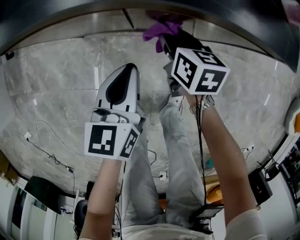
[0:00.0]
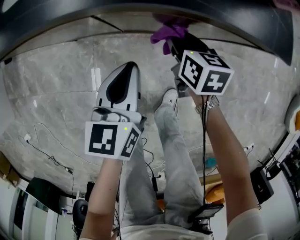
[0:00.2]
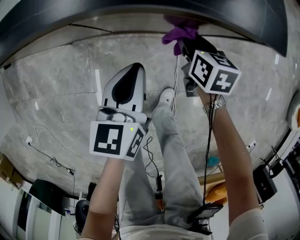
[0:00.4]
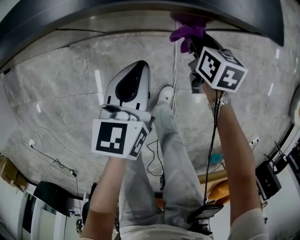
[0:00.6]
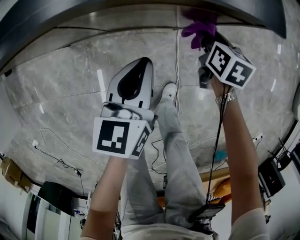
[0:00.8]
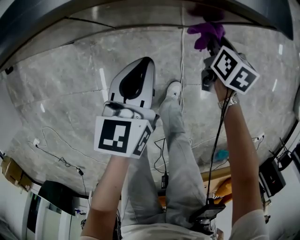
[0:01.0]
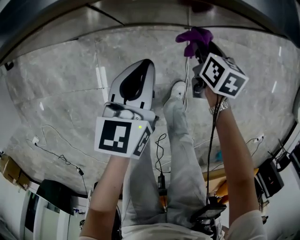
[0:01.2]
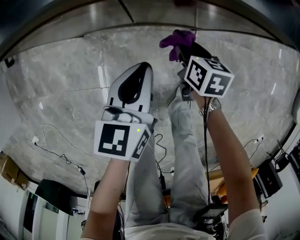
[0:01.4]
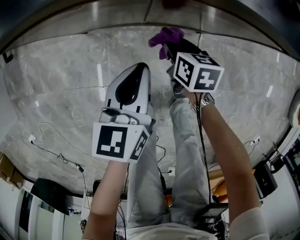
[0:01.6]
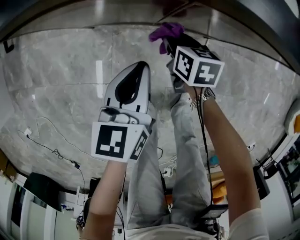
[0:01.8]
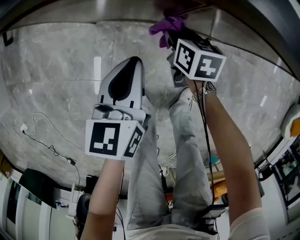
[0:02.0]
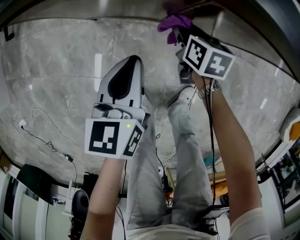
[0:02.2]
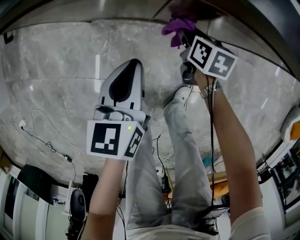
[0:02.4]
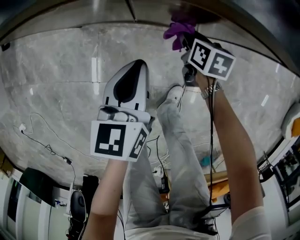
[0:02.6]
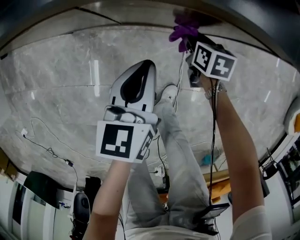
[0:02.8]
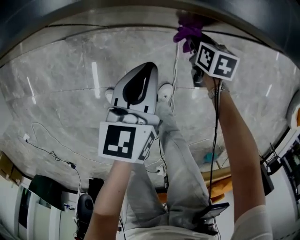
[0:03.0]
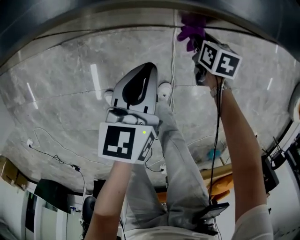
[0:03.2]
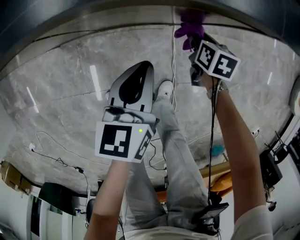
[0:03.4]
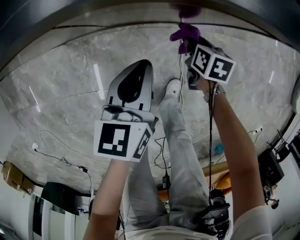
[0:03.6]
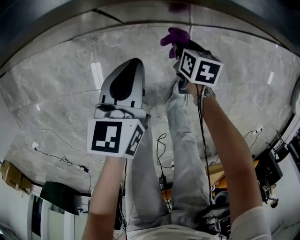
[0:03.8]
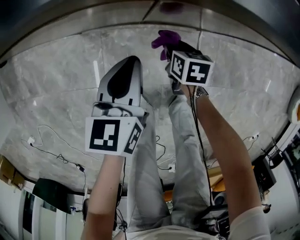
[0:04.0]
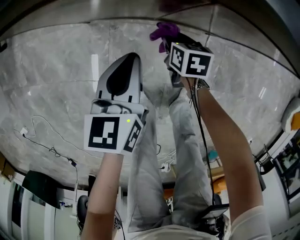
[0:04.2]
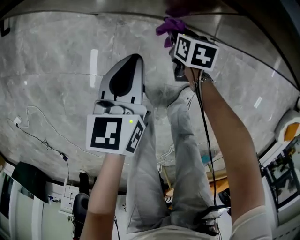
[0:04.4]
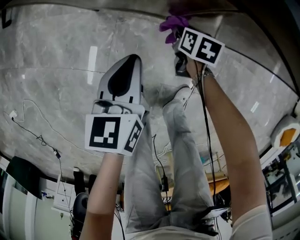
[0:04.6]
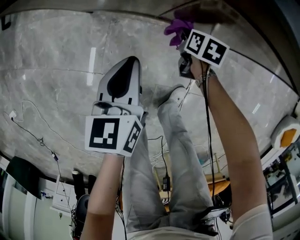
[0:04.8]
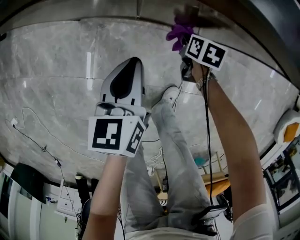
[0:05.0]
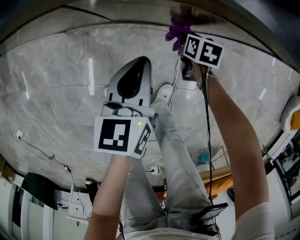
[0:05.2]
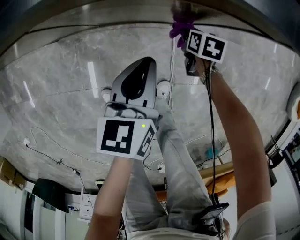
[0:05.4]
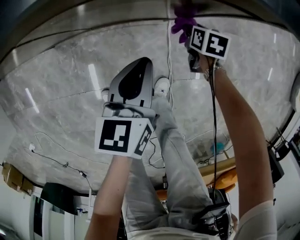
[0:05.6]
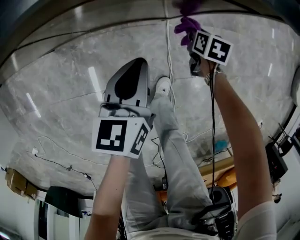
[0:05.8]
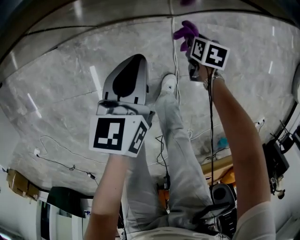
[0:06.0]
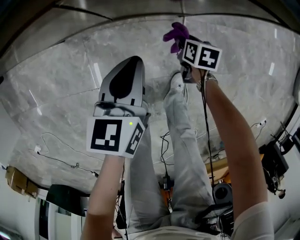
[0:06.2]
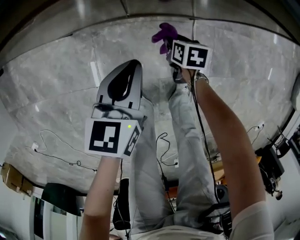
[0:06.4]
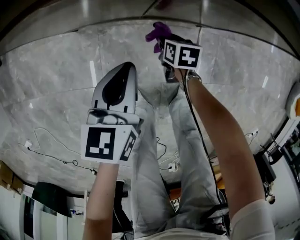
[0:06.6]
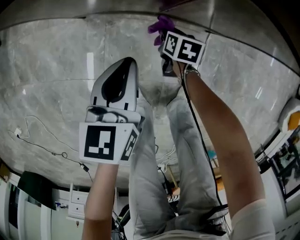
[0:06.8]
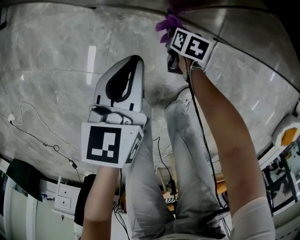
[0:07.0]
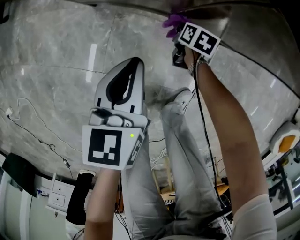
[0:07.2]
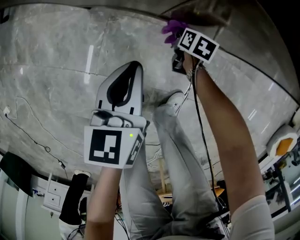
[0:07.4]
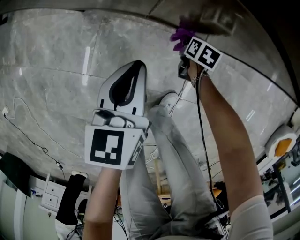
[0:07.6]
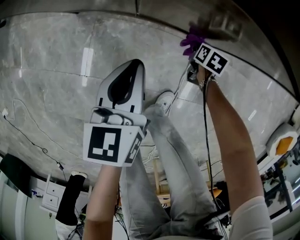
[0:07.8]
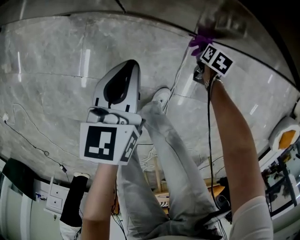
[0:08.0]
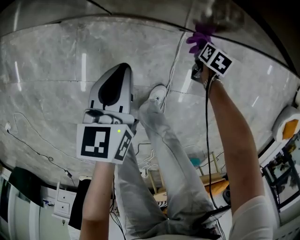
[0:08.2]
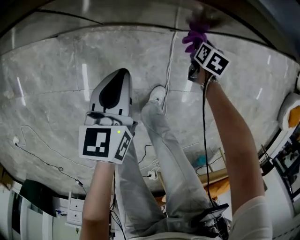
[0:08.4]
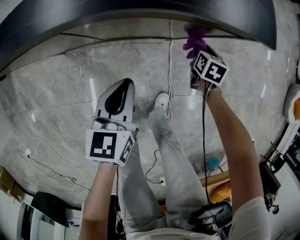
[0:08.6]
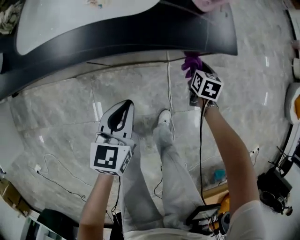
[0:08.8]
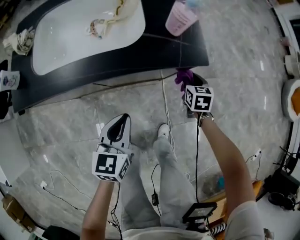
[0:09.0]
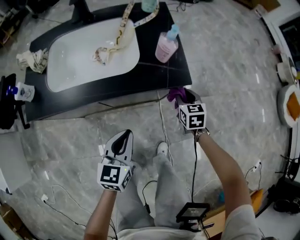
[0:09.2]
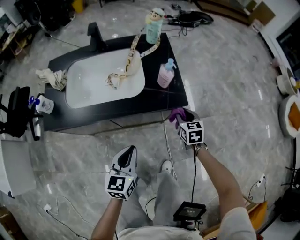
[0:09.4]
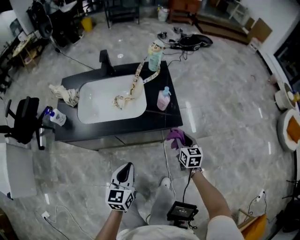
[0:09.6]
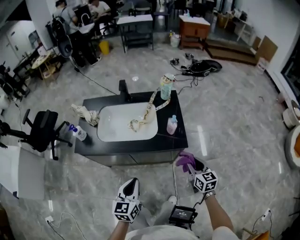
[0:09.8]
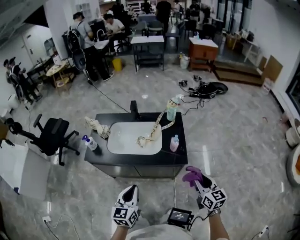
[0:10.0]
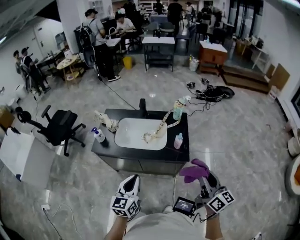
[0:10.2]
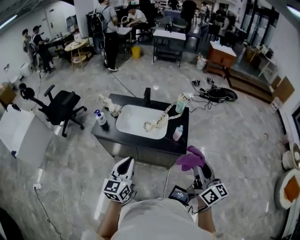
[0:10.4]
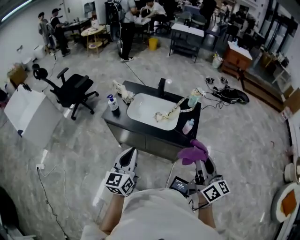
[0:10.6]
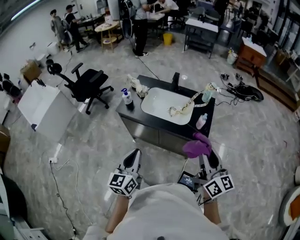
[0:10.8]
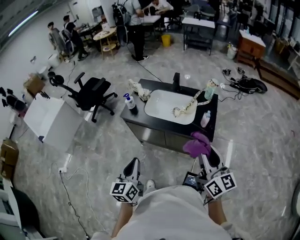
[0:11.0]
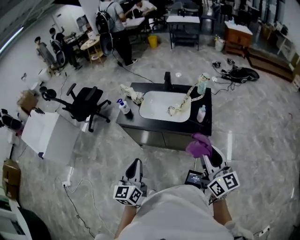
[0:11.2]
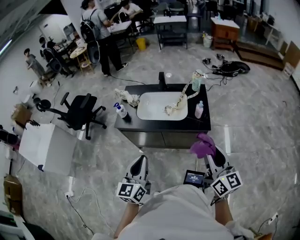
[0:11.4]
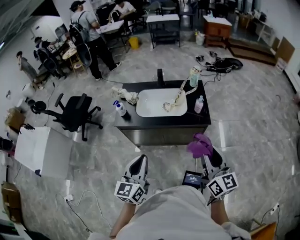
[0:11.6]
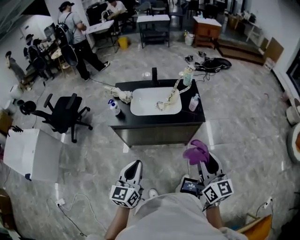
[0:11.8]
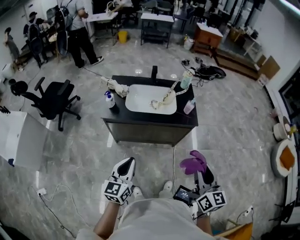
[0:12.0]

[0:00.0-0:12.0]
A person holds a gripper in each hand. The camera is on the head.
0:00.0 to 0:01.6: The left gripper reaches roughly 15 cm to the right, then returns. The right gripper travels downward by roughly 5 cm, and reaches some 25 cm to the right, then returns.
0:01.6 to 0:03.0: The two grippers go some 20 cm to the right.
0:03.0 to 0:04.4: Both grippers travel together to the left, some 30 cm.
0:04.4 to 0:06.0: The left gripper ends up some 25 cm from where it was; the right gripper ends up roughly 35 cm from where it was, and turns by some 20 degrees.
0:06.0 to 0:07.6: The left gripper is displaced to the left by roughly 15 cm, and swivels about 20 degrees; the right gripper travels to the left, forward and downward by approximately 20 cm.
0:07.6 to 0:09.0: The left gripper travels upward by approximately 20 cm, and turns by about 30 degrees, while the right gripper shifts roughly 30 cm upward, and turns by approximately 20 degrees.
0:09.0 to 0:10.4: Both grippers move upward, some 50 cm. The right gripper points its fingers roughly 50 degrees further upward. Meanwhile the left gripper changes its angle by about 30 degrees.
0:10.4 to 0:12.0: The right gripper changes place by approximately 25 cm, and changes its angle by some 20 degrees; the left gripper changes place by roughly 20 cm.

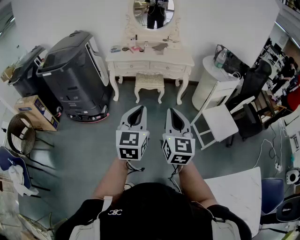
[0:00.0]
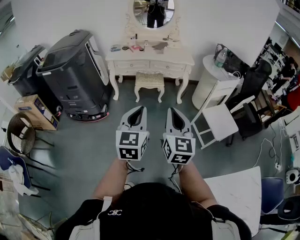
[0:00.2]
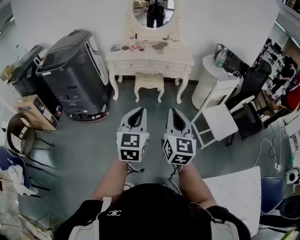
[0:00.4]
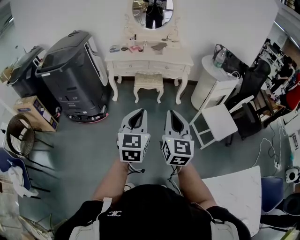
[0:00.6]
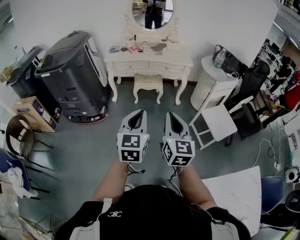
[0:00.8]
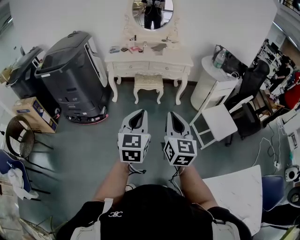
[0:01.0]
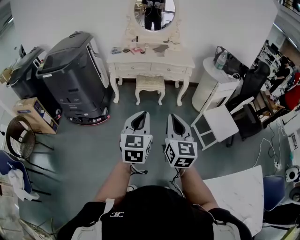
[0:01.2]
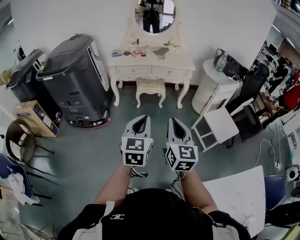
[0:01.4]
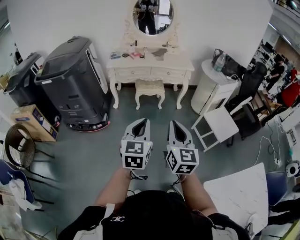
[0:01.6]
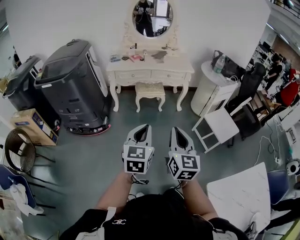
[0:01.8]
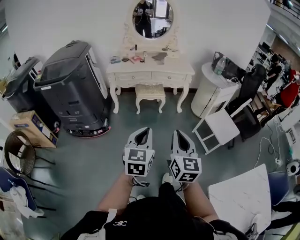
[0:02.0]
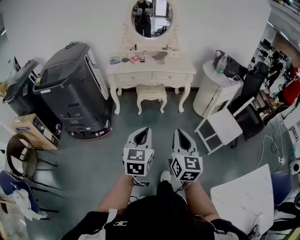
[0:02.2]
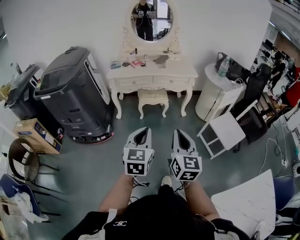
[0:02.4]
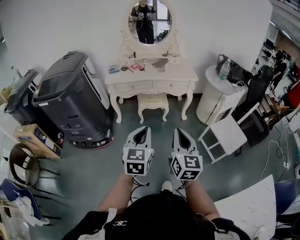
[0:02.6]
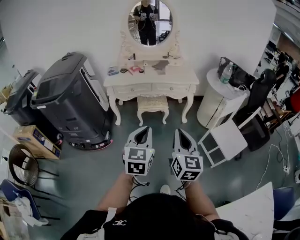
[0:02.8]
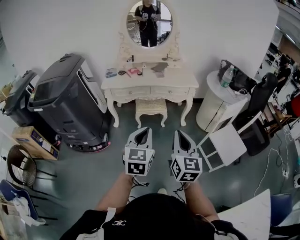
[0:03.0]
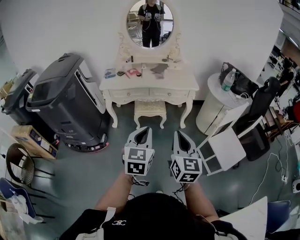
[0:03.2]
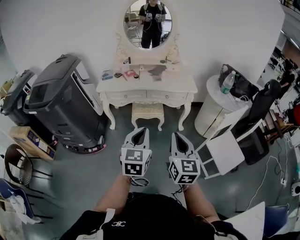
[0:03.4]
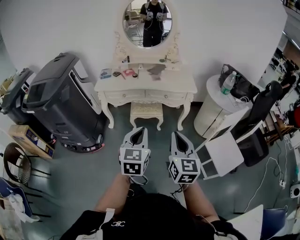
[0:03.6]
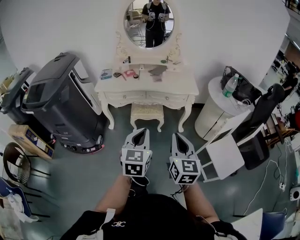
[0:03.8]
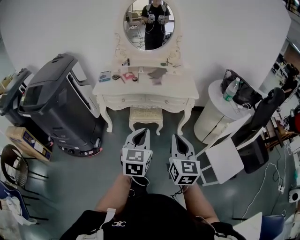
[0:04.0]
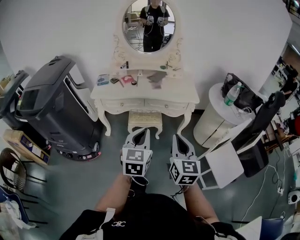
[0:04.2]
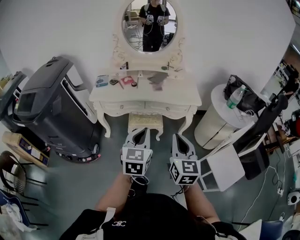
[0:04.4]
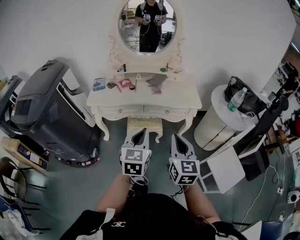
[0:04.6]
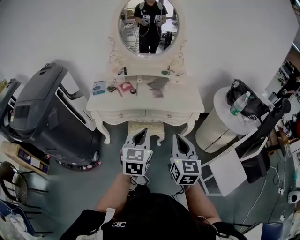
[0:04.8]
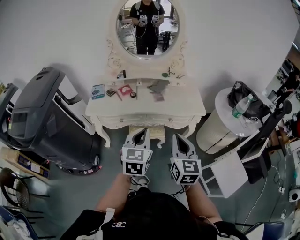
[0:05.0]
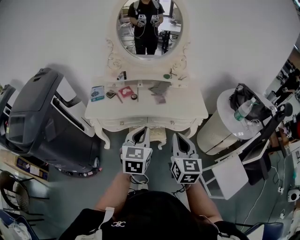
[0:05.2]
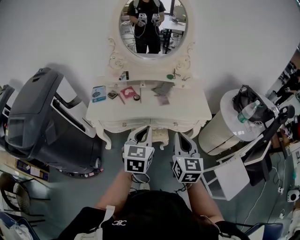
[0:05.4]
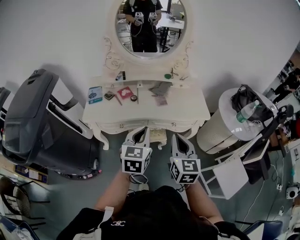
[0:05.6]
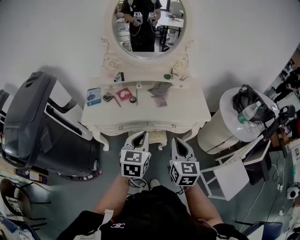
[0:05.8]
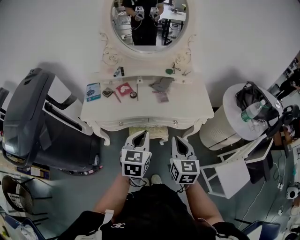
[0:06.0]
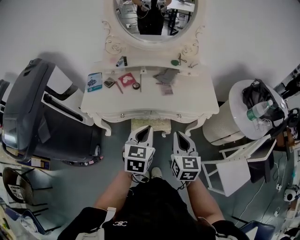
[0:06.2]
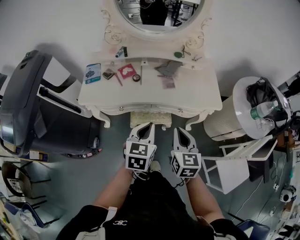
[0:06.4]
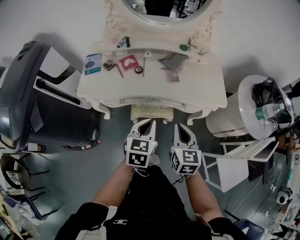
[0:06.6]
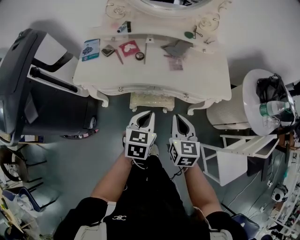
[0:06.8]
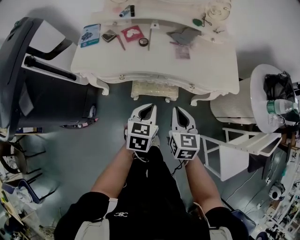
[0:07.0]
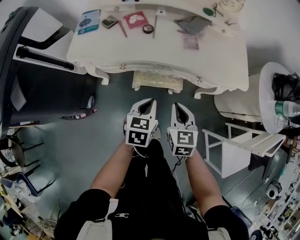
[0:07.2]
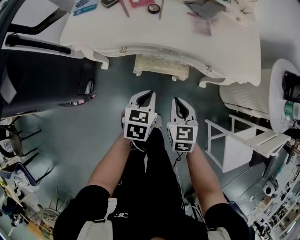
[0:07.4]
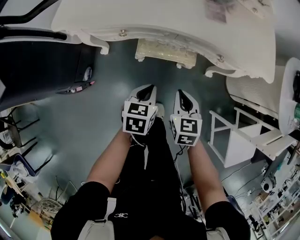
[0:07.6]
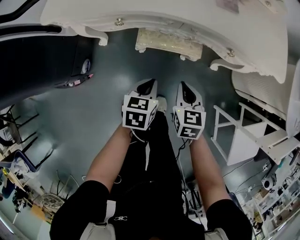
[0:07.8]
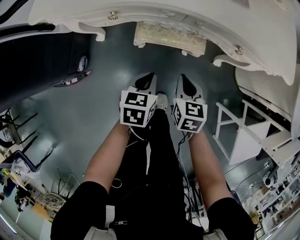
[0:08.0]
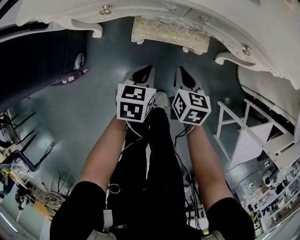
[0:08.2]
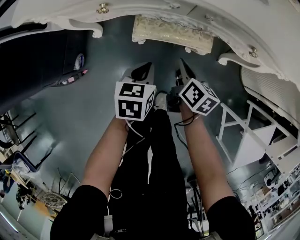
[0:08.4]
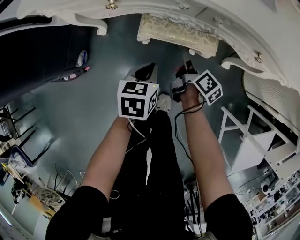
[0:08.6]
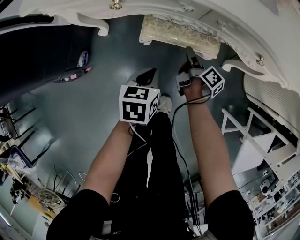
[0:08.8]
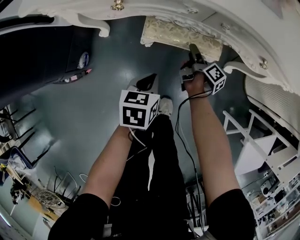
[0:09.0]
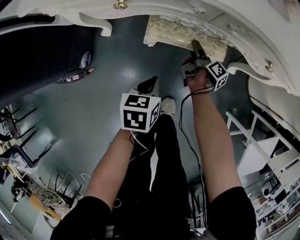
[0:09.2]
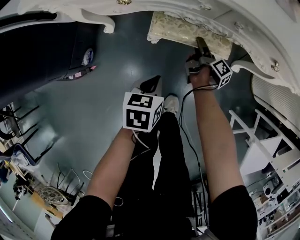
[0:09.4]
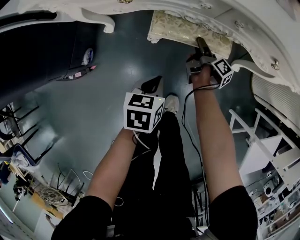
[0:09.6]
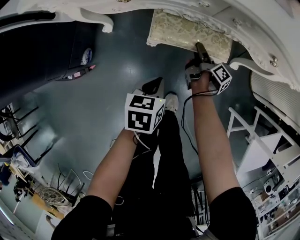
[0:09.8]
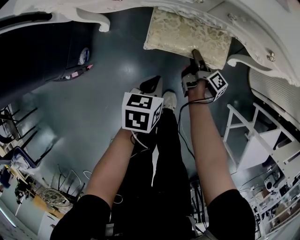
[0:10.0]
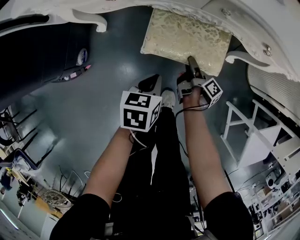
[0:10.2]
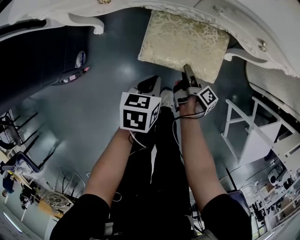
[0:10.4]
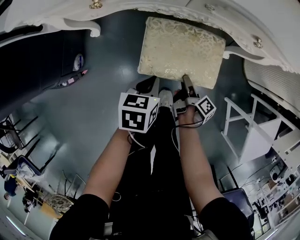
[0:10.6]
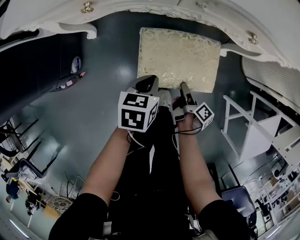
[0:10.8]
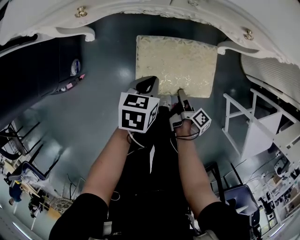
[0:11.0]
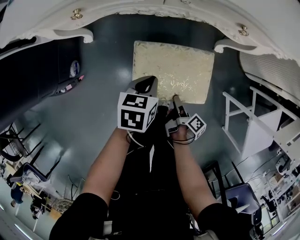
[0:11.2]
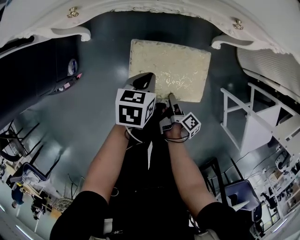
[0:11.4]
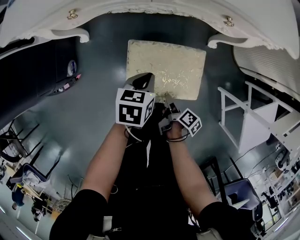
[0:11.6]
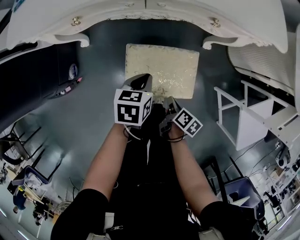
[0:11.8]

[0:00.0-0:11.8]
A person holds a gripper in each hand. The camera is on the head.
0:00.0 to 0:01.4: The right gripper shifts by roughly 5 cm. Meanwhile the left gripper moves some 5 cm.
0:01.4 to 0:03.0: Both grippers move forward, some 20 cm.
0:03.0 to 0:04.4: Both grippers move forward, roughly 20 cm.
0:04.4 to 0:06.0: The grippers both shift forward by about 20 cm.
0:06.0 to 0:07.4: Both grippers move downward, about 25 cm. The right gripper changes its angle by roughly 20 degrees, while the left gripper swivels roughly 20 degrees.
0:07.4 to 0:08.8: The right gripper heads downward and forward, covering about 35 cm, twists approximately 80 degrees clockwise, seen from behind, and opens up; the left gripper heads downward, covering some 20 cm.
0:08.8 to 0:10.4: The left gripper moves roughly 5 cm; the right gripper shifts some 10 cm backward.
0:10.4 to 0:11.8: The right gripper heads backward, upward and to the right, covering some 15 cm, swivels approximately 30 degrees, and closes up. Meanwhile the left gripper is displaced to the right by approximately 5 cm.
